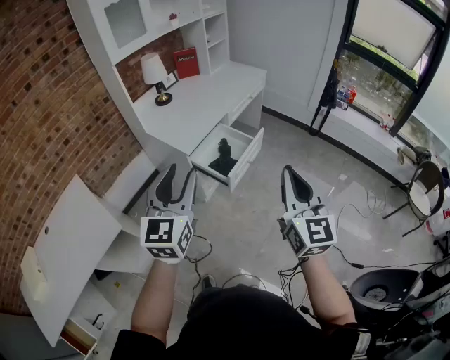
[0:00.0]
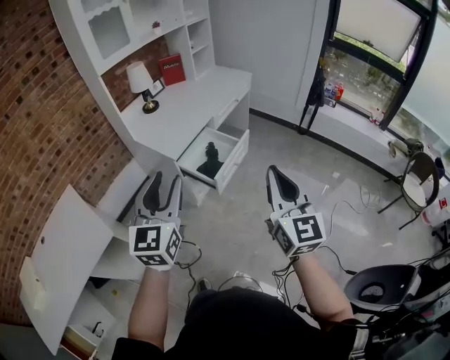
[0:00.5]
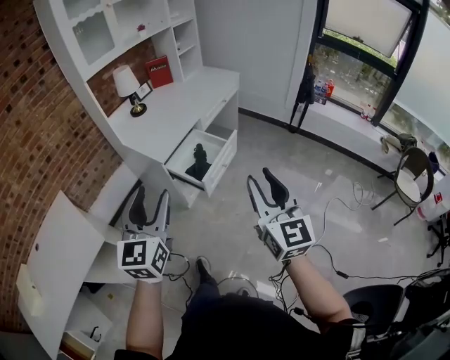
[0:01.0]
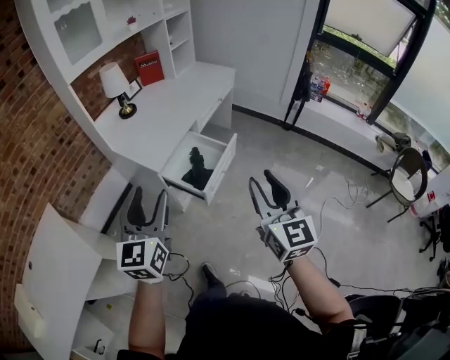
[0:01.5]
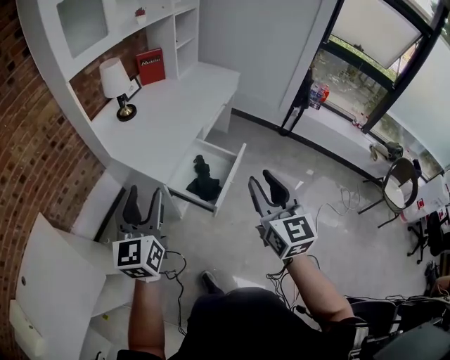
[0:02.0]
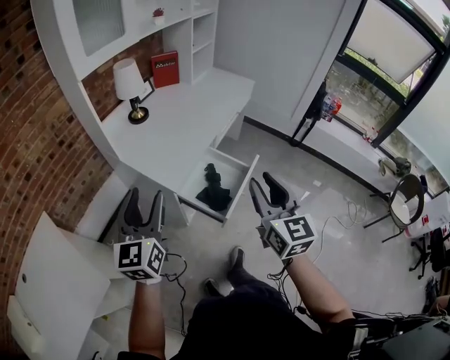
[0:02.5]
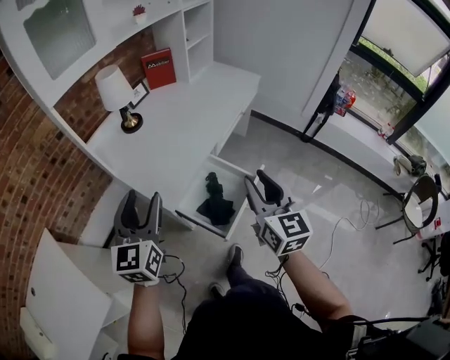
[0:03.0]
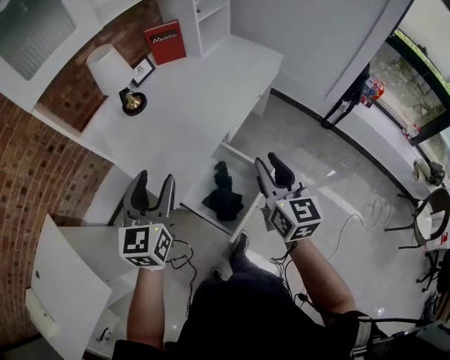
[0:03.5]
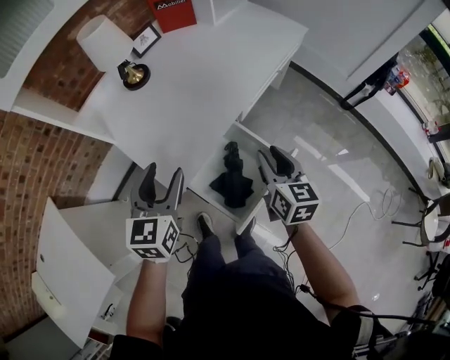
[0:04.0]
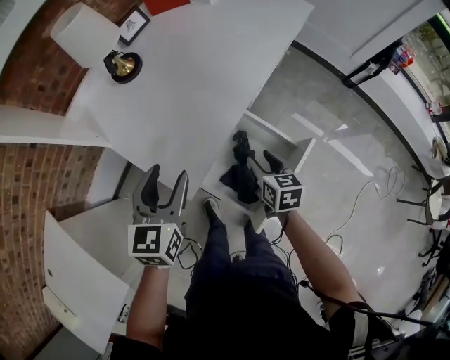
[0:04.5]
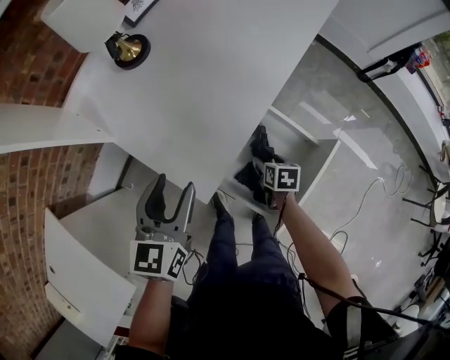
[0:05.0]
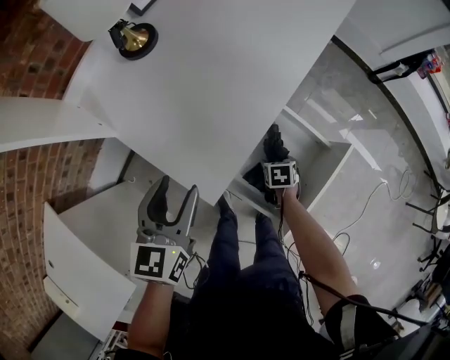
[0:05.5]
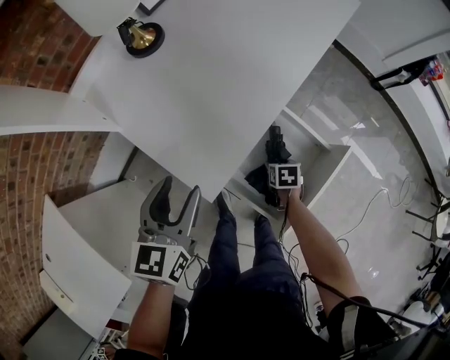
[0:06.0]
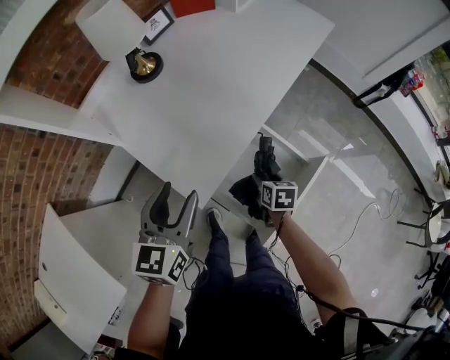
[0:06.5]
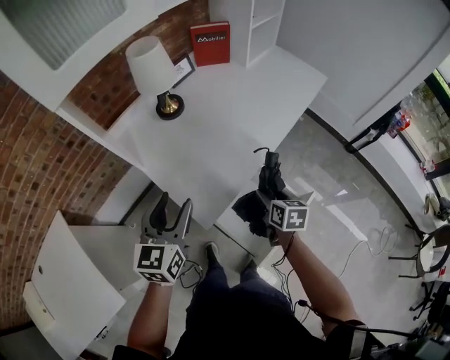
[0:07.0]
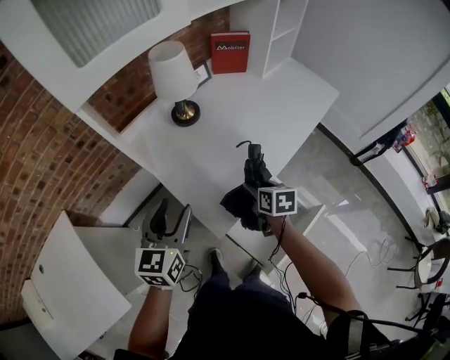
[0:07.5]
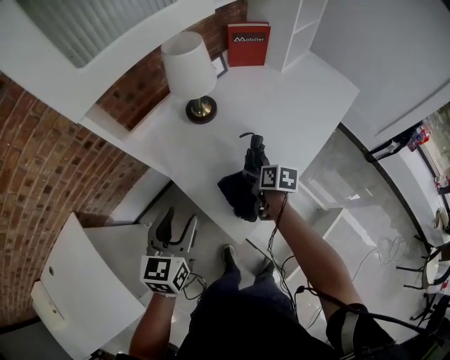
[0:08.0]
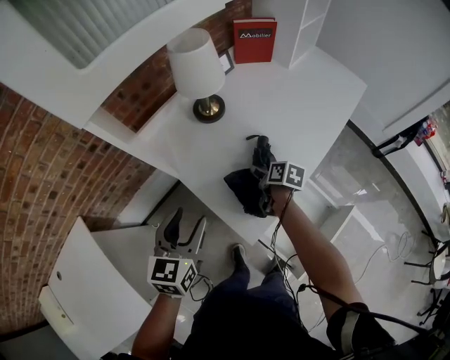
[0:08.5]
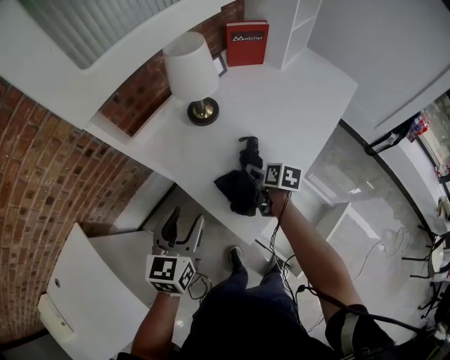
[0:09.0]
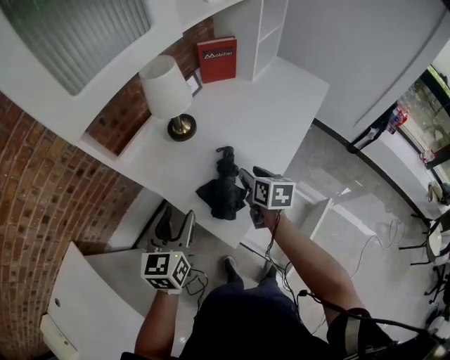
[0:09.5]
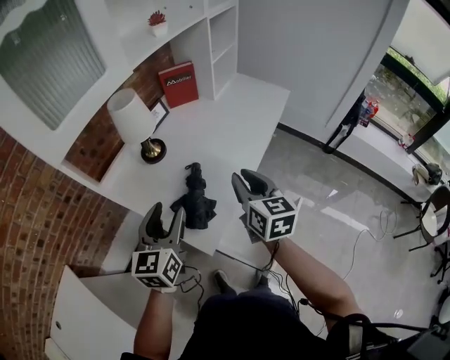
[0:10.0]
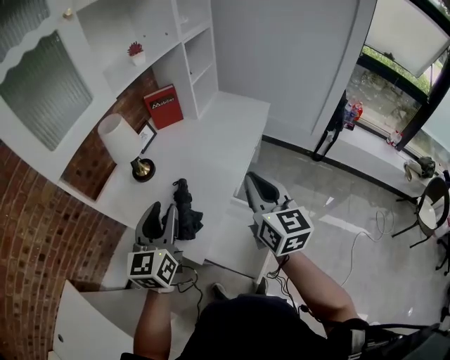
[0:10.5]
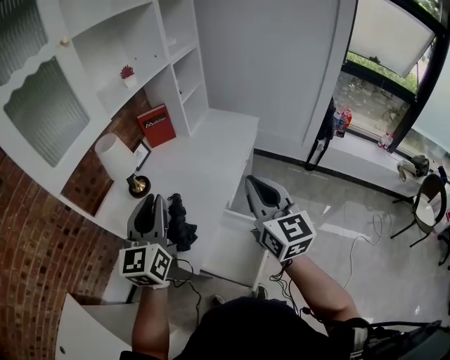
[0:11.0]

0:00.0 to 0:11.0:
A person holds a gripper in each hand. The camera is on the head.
0:00.0 to 0:02.0: Both grippers move forward and to the left, roughly 20 cm. The right gripper opens.
0:02.0 to 0:03.5: Both grippers move forward, some 30 cm.
0:03.5 to 0:05.5: The right gripper travels downward by roughly 50 cm, points its fingers about 60 degrees further downward, and opens; the left gripper travels downward by some 20 cm, and changes its angle by roughly 20 degrees.
0:05.5 to 0:07.5: The right gripper heads upward, covering roughly 30 cm, and angles its fingers upward, by about 30 degrees; the left gripper shifts approximately 15 cm upward.
0:07.5 to 0:09.0: The left gripper moves to the left, about 5 cm. Meanwhile the right gripper heads forward, downward and to the left, covering about 15 cm.
0:09.0 to 0:11.0: The right gripper travels upward, to the right and backward by approximately 50 cm, tips its fingers upward by some 50 degrees, and closes; the left gripper is displaced upward and to the right by approximately 30 cm, turns by approximately 30 degrees, and closes its fingers.

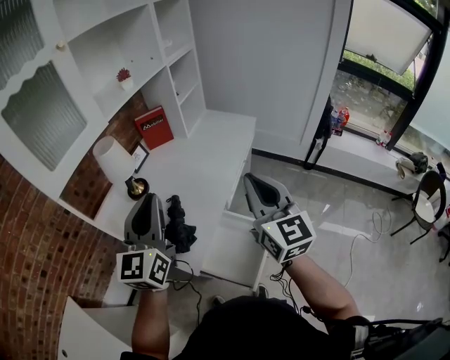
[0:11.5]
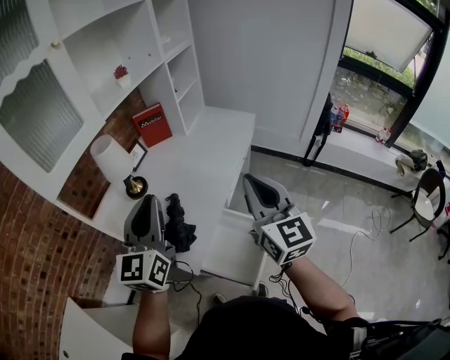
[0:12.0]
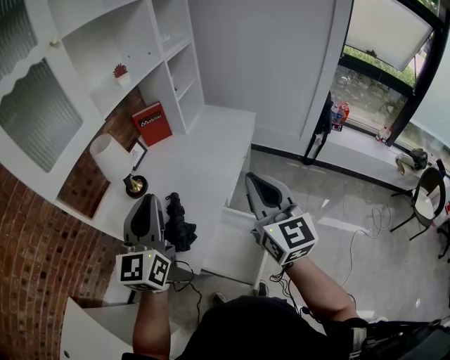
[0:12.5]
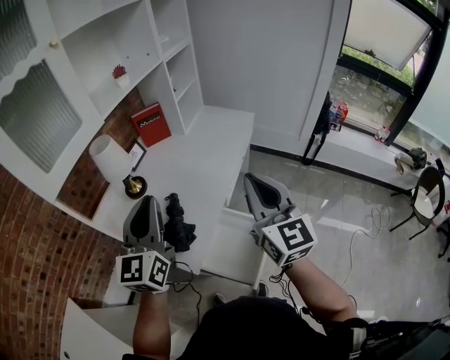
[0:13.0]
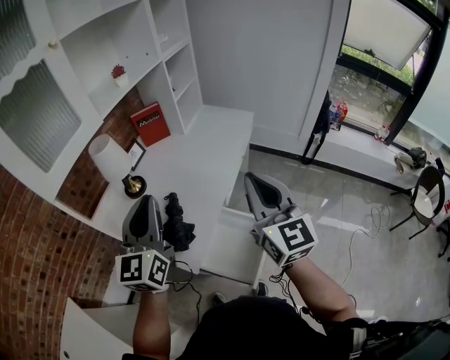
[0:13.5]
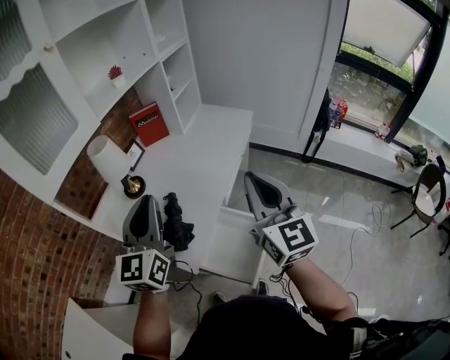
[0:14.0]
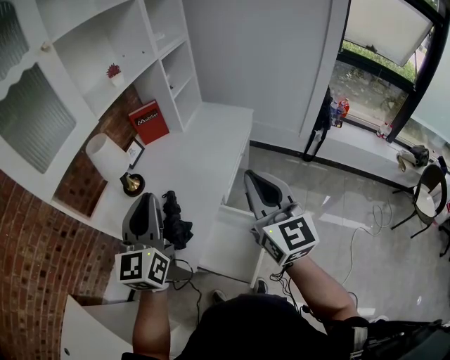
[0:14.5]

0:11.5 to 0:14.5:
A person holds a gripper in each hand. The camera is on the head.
0:11.5 to 0:14.5: The grippers make only small movements.

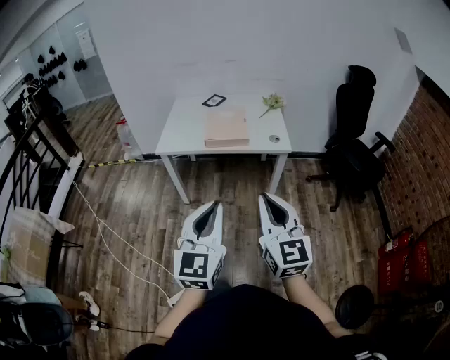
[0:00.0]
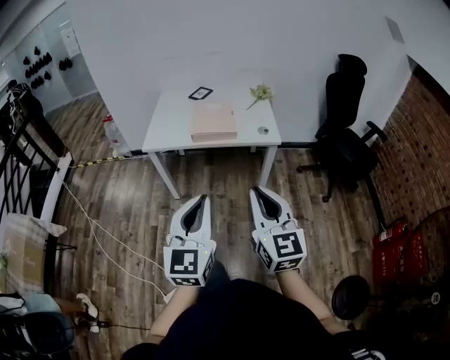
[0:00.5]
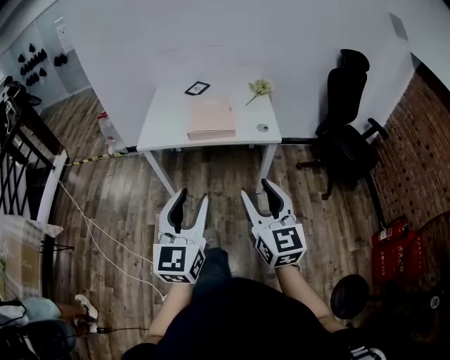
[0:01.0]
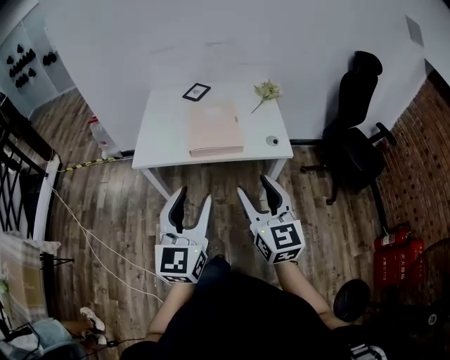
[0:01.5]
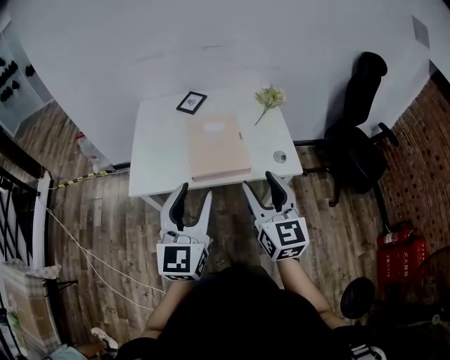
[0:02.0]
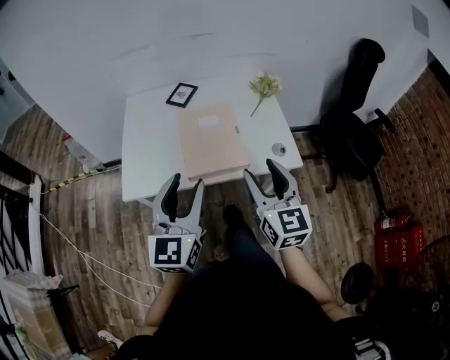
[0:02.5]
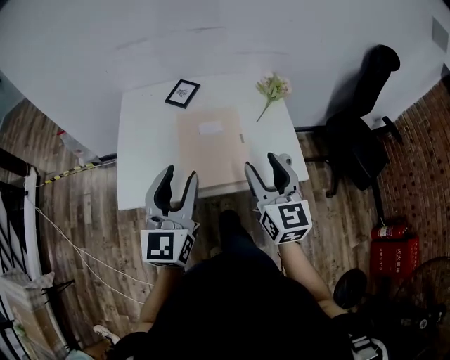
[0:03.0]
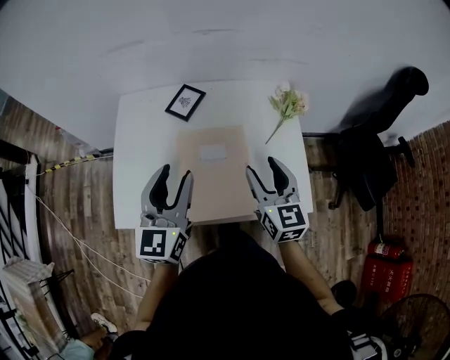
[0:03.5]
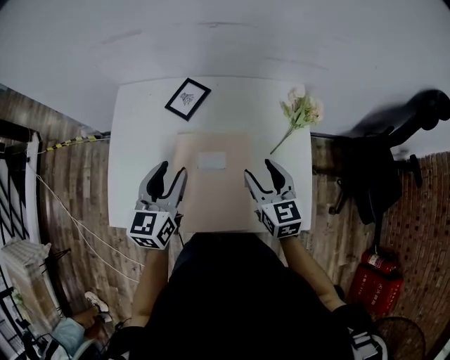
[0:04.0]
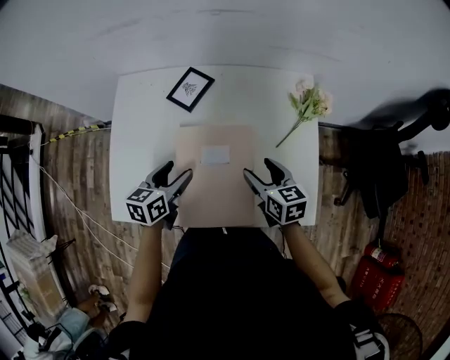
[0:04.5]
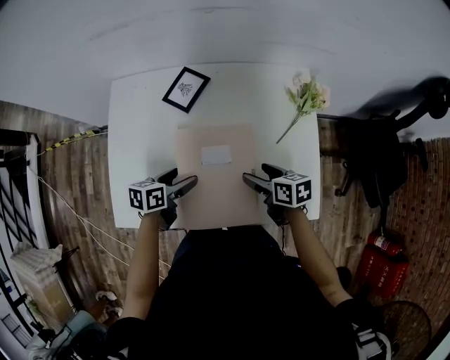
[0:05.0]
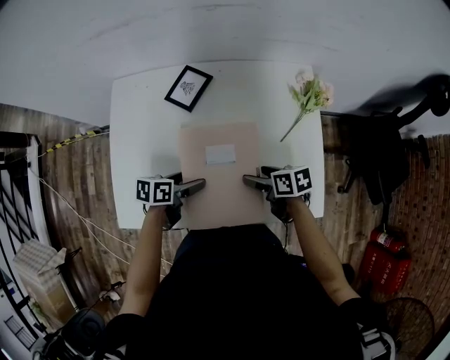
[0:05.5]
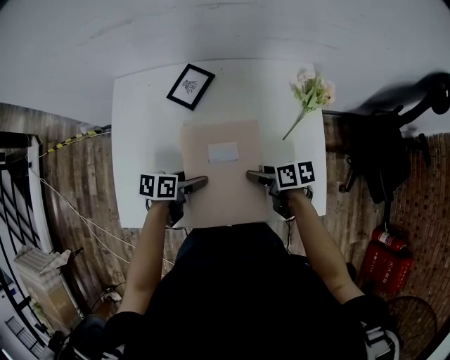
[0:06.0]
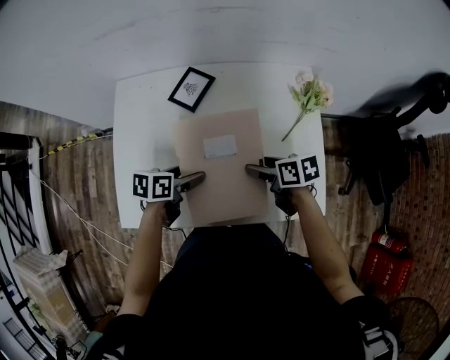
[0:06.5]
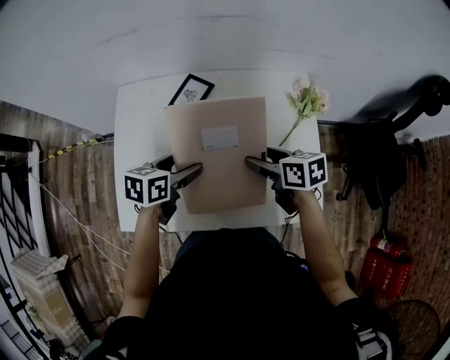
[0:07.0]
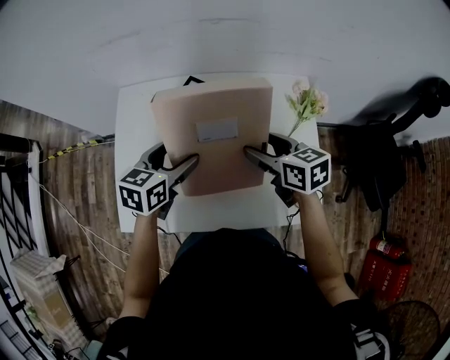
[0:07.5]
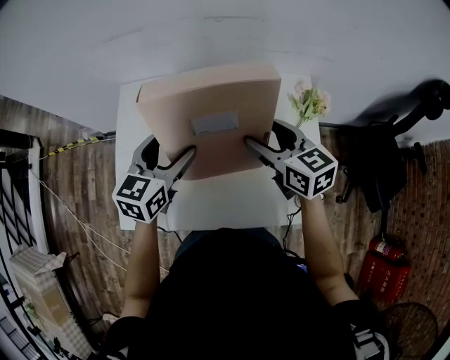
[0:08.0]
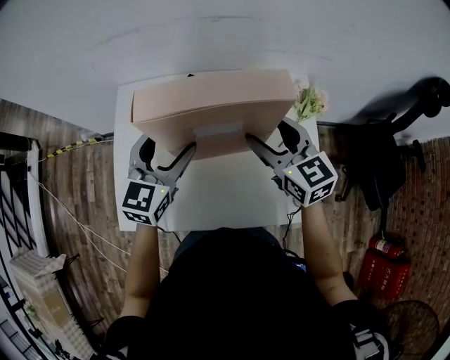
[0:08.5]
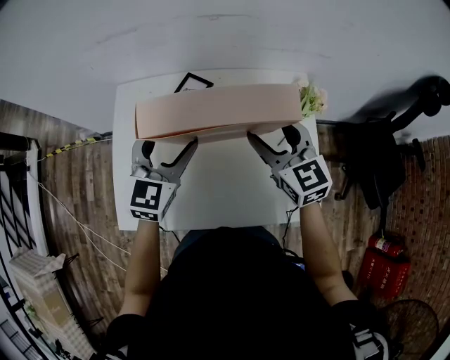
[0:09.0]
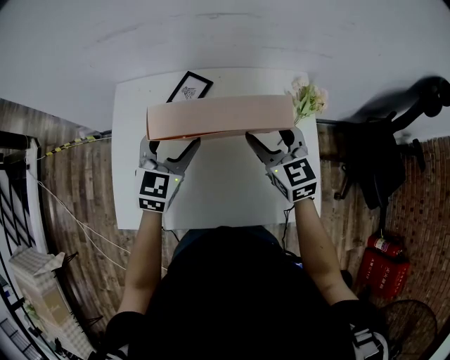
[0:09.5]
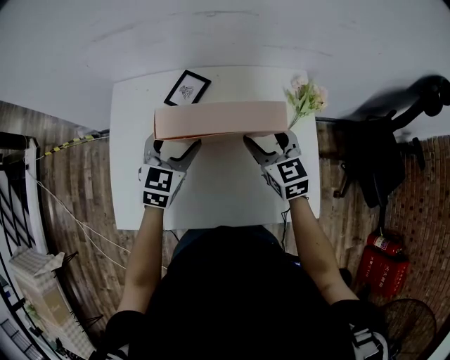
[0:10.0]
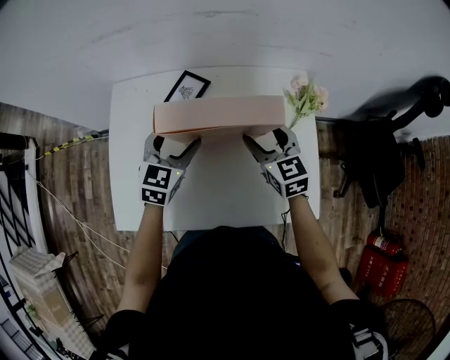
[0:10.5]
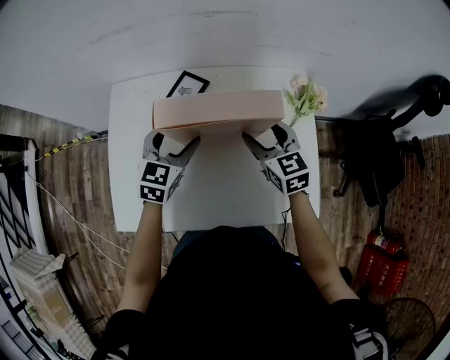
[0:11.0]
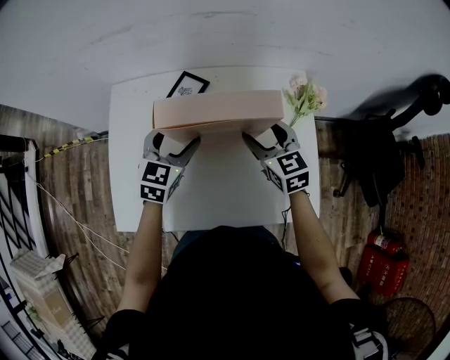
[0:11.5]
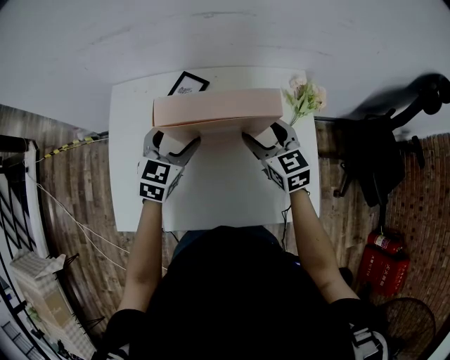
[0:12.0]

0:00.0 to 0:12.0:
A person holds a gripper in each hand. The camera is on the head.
0:00.0 to 0:02.0: Both grippers move forward, approximately 40 cm. The left gripper opens up; the right gripper opens up.
0:02.0 to 0:04.0: The right gripper moves forward and downward, roughly 40 cm, and rotates some 20 degrees; the left gripper goes approximately 35 cm forward, and rotates roughly 20 degrees.
0:04.0 to 0:06.0: The two grippers go some 15 cm downward. The left gripper swivels approximately 60 degrees, and opens its fingers. Meanwhile the right gripper swivels approximately 60 degrees.
0:06.0 to 0:08.0: The grippers both shift upward by about 20 cm. The left gripper swivels approximately 50 degrees; the right gripper twists approximately 40 degrees counterclockwise, seen from behind.
0:08.0 to 0:10.0: Both grippers travel together downward, roughly 5 cm.
0:10.0 to 0:12.0: The grippers stay close to where they were, moving slightly.
